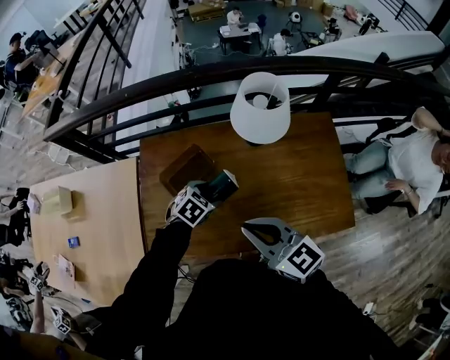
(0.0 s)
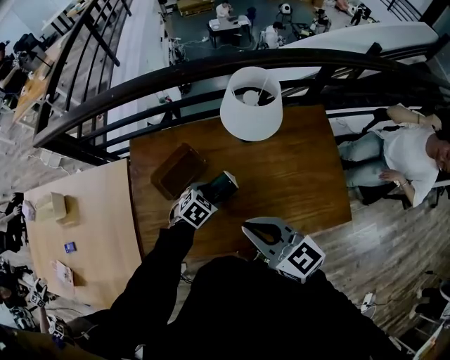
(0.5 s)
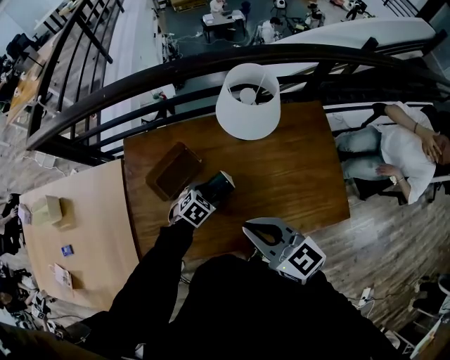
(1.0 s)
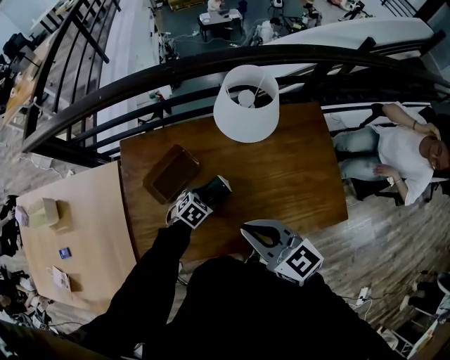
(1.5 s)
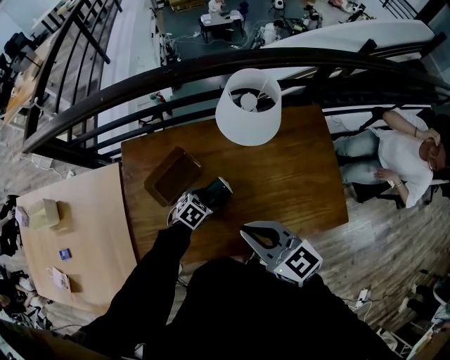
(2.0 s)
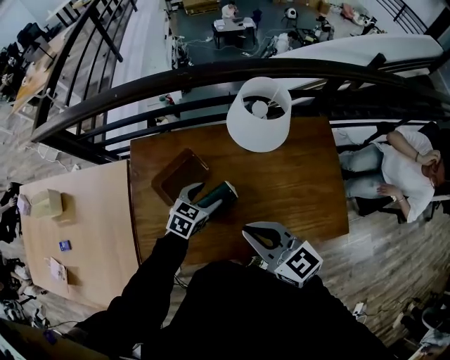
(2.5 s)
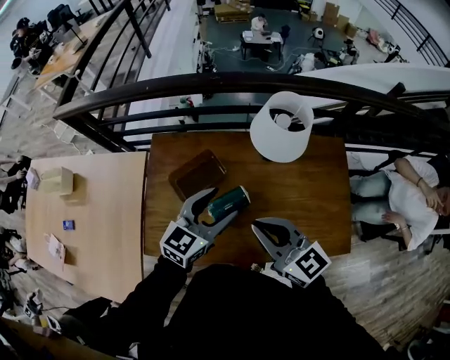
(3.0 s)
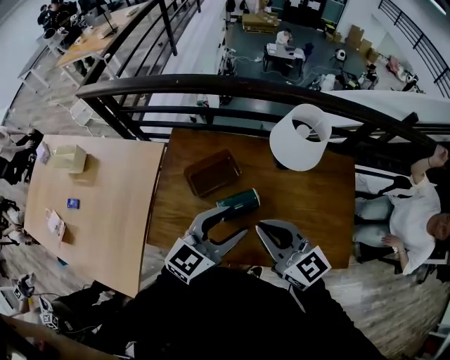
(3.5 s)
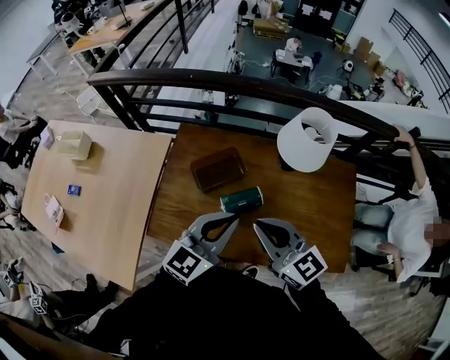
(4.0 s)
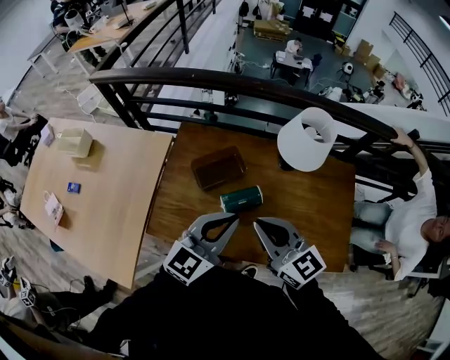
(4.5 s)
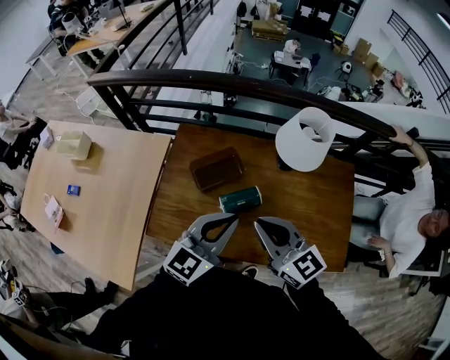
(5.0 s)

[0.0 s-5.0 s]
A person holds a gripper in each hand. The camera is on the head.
0.0 to 2.5 s: The left gripper moves roughly 10 cm downward and comes back, and turns by approximately 20 degrees.
2.5 to 5.0 s: The right gripper moves upward, some 5 cm. Meanwhile the left gripper is displaced upward and backward by about 25 cm, tips its fingers upward by roughly 30 degrees, and closes.

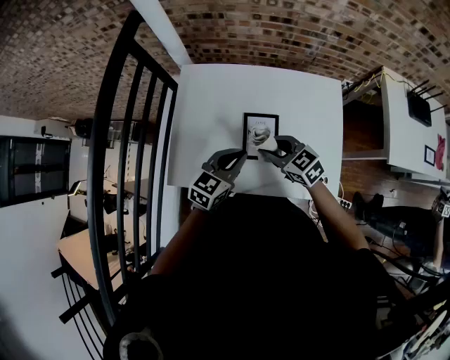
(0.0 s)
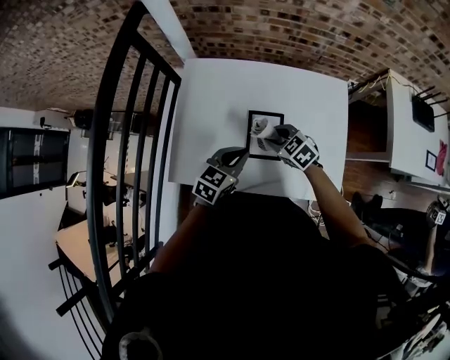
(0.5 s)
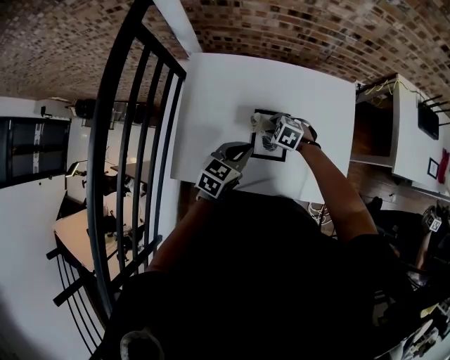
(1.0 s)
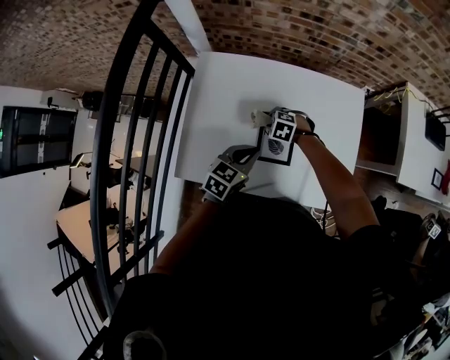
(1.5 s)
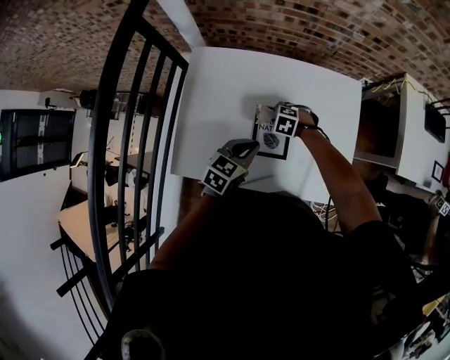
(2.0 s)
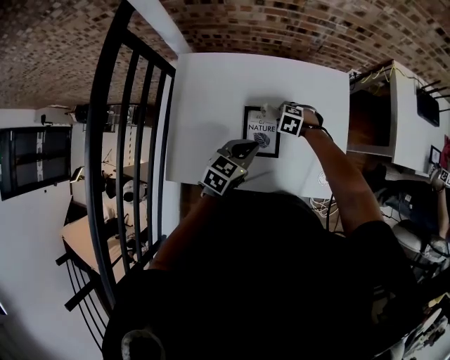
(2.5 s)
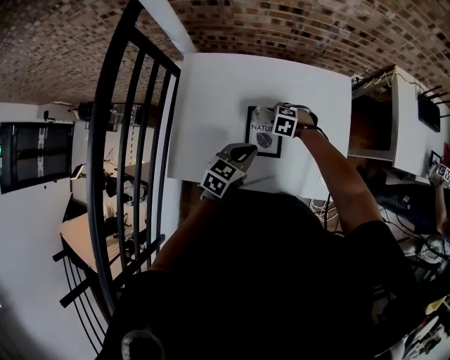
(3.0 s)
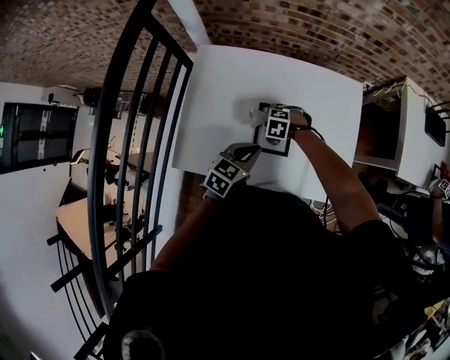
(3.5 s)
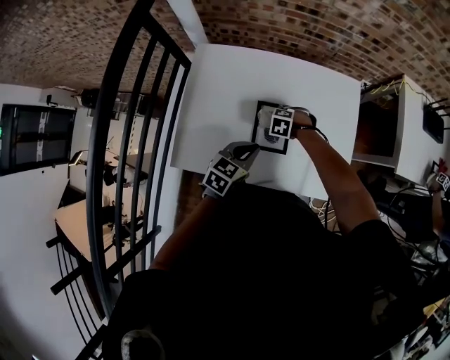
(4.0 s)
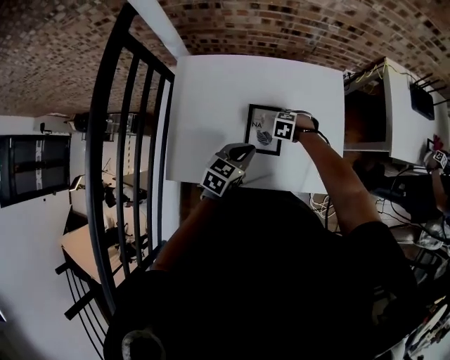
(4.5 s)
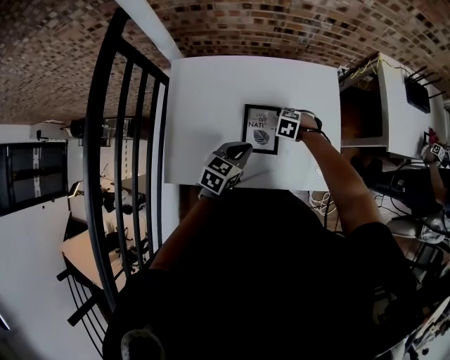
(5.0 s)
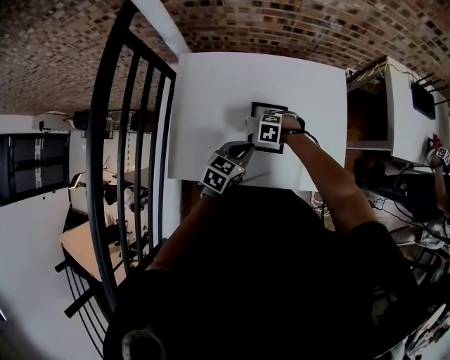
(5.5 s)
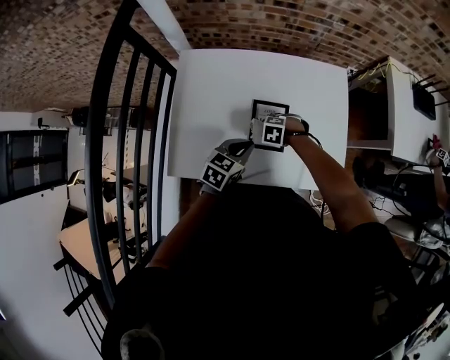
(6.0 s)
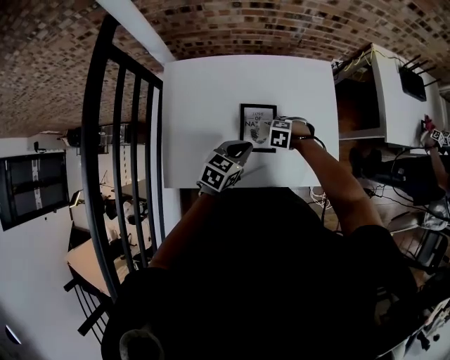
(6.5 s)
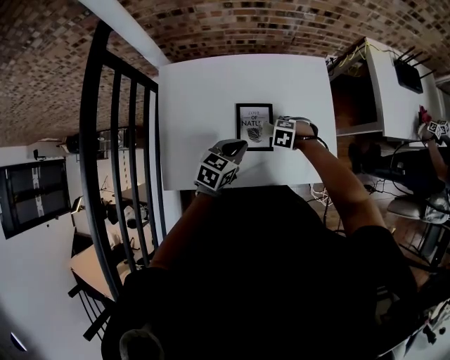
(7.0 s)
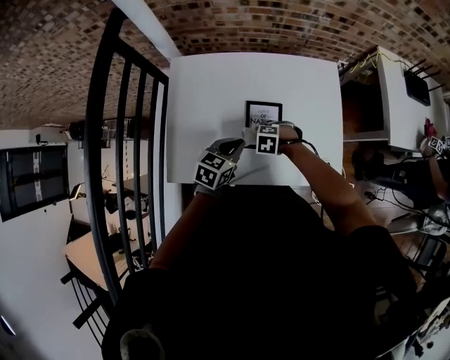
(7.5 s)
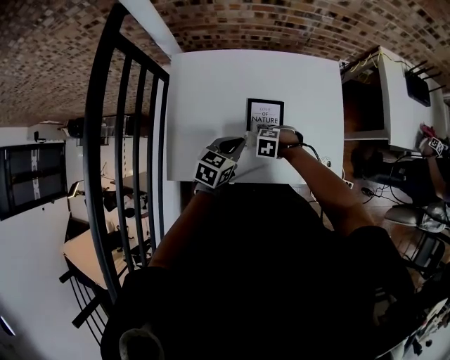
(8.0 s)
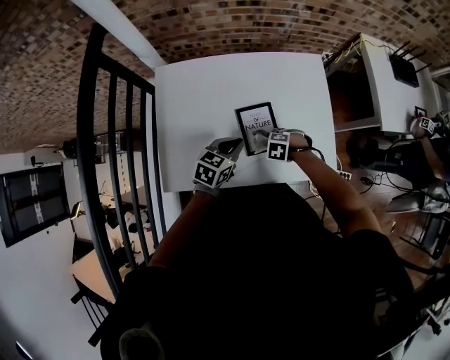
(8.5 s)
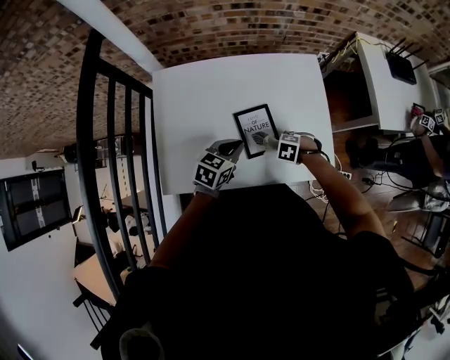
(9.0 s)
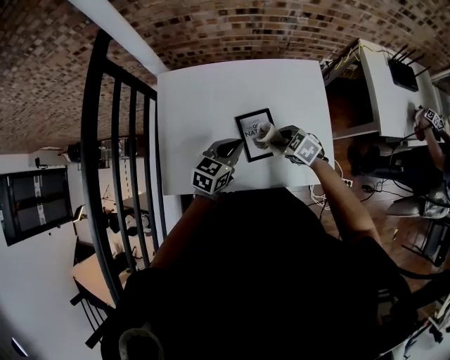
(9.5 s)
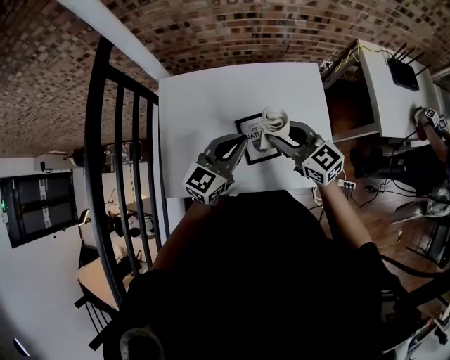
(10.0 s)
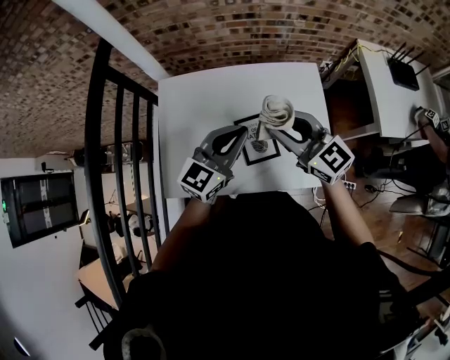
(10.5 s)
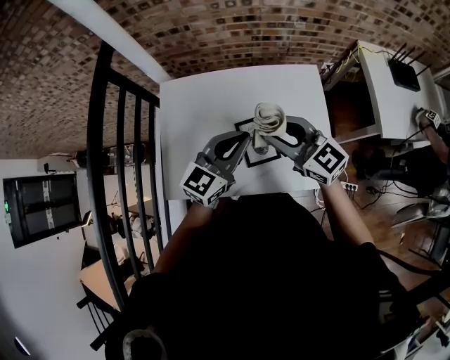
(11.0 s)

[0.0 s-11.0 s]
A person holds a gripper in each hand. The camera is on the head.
0.0 to 2.0 s: The left gripper heads downward, covering about 5 cm. Meanwhile the right gripper shifts roughly 20 cm downward, and tips its fingers downward by about 40 degrees.
7.5 to 9.0 s: The right gripper moves some 15 cm.
9.0 to 11.0 s: The right gripper travels upward by some 35 cm, and tips its fingers upward by about 80 degrees. The left gripper goes roughly 20 cm upward, and points its fingers roughly 30 degrees further upward.

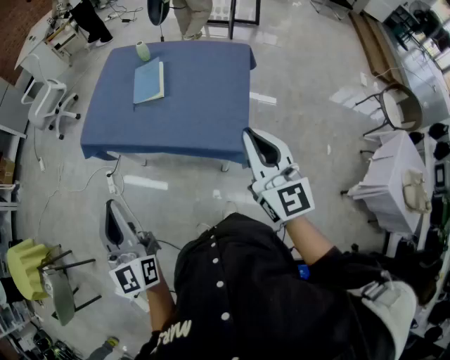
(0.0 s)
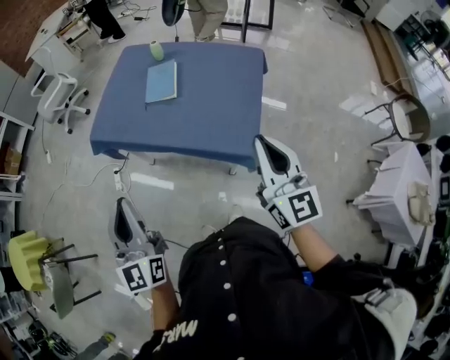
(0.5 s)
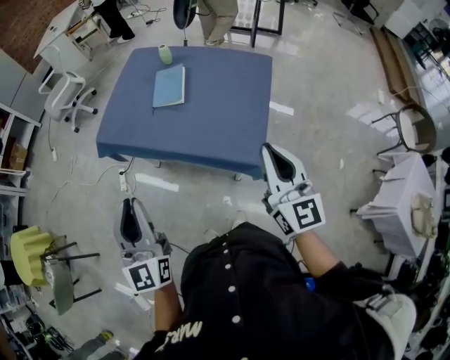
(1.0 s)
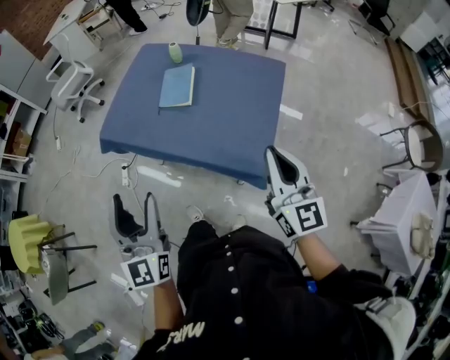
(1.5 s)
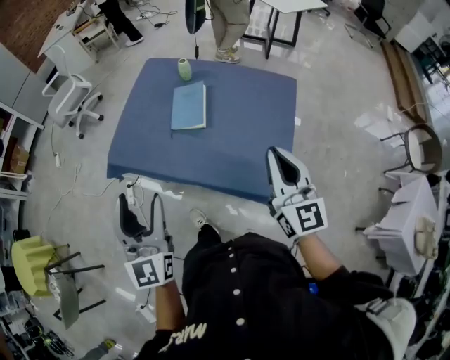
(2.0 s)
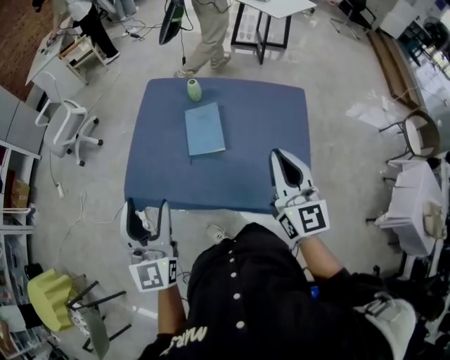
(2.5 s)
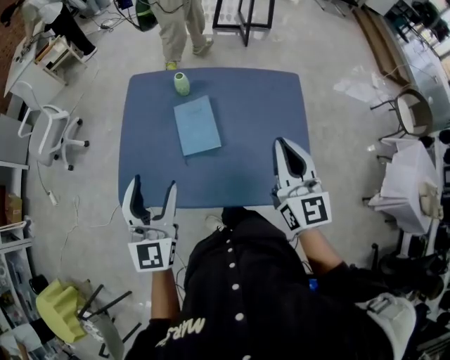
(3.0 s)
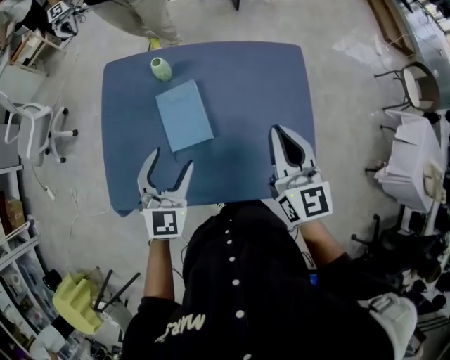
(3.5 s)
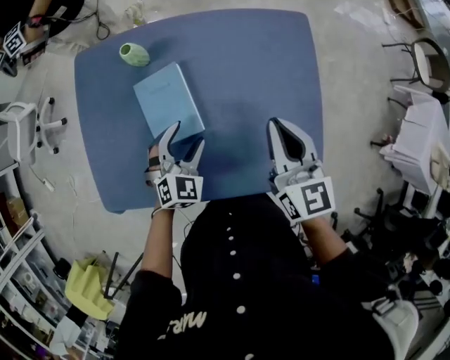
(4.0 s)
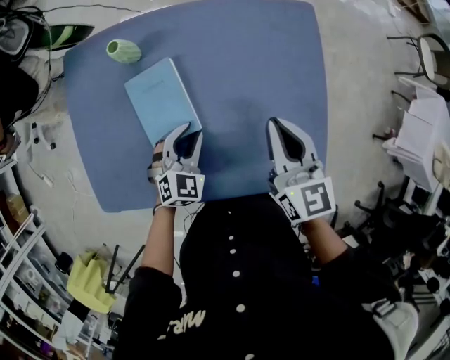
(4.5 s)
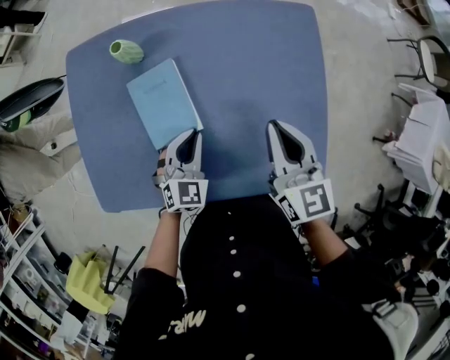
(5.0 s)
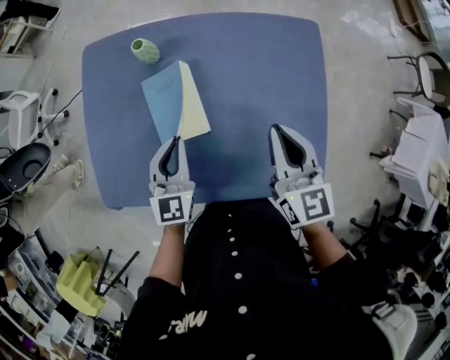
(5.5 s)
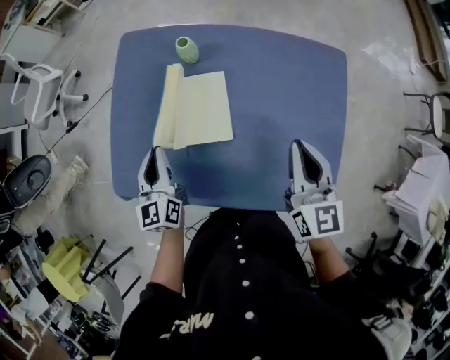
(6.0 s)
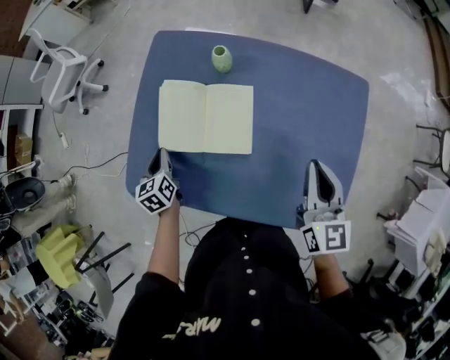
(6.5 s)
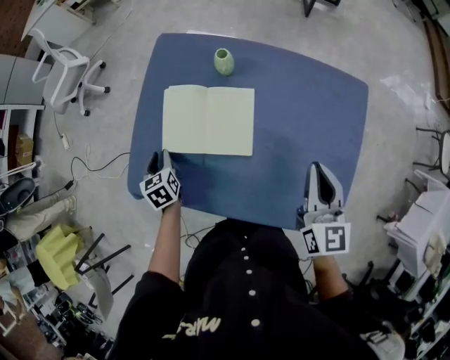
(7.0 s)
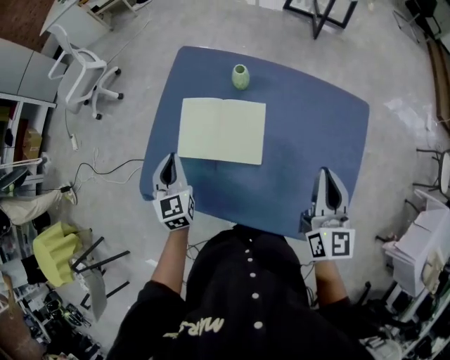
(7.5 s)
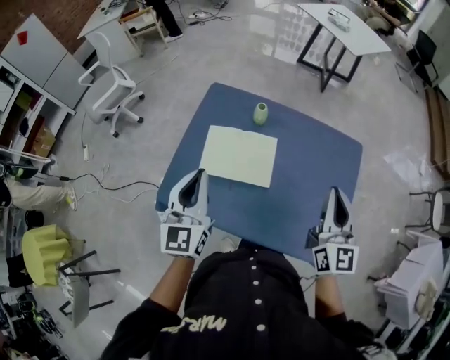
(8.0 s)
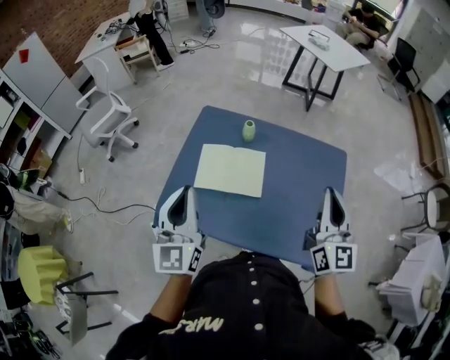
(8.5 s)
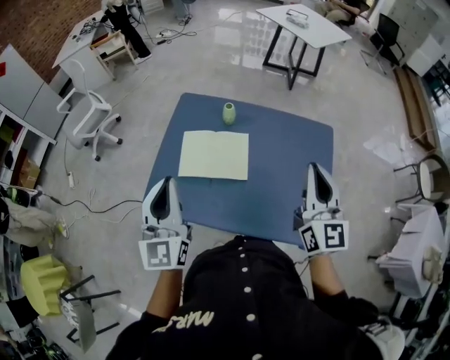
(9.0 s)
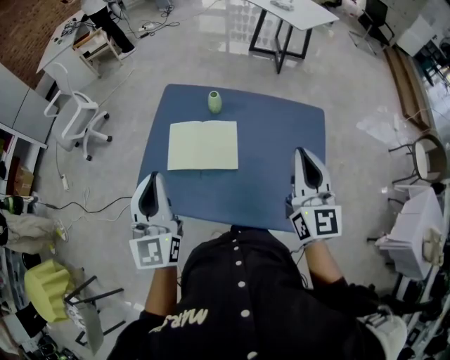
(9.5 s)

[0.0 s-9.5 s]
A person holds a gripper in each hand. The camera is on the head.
0.0 to 2.0 s: Both grippers travel together forward, approximately 20 cm. The left gripper opens.
2.0 to 4.0 s: The left gripper changes place by roughly 50 cm, and tips its fingers downward by about 40 degrees. The right gripper shifts by some 35 cm, and swivels some 30 degrees.
4.0 to 5.5 s: The left gripper moves to the left and upward, some 10 cm, rotates about 40 degrees, and closes its fingers.
5.5 to 7.5 s: The right gripper moves upward, roughly 5 cm. Meanwhile the left gripper goes about 20 cm to the left, and changes its angle by roughly 30 degrees.
7.5 to 9.5 s: The right gripper goes approximately 20 cm upward and backward; the left gripper shifts approximately 30 cm upward and backward, and changes its angle by some 30 degrees.

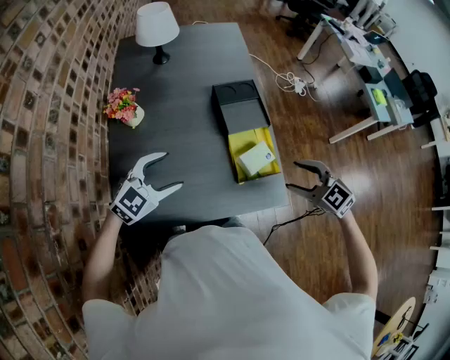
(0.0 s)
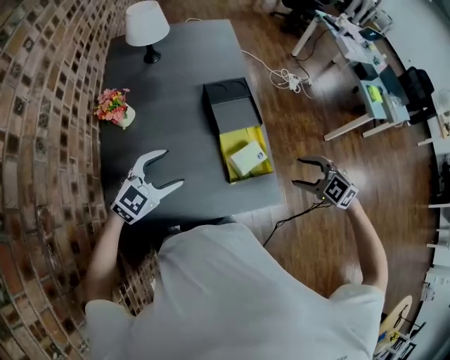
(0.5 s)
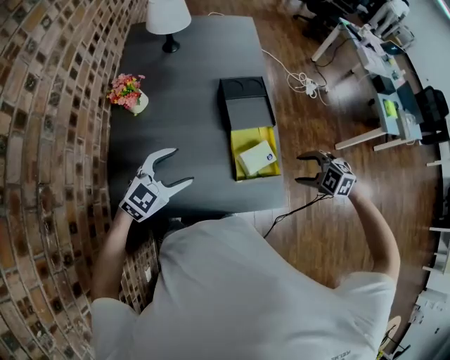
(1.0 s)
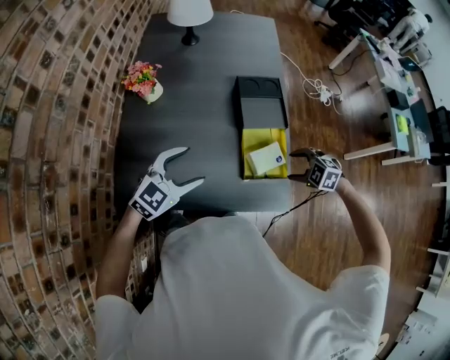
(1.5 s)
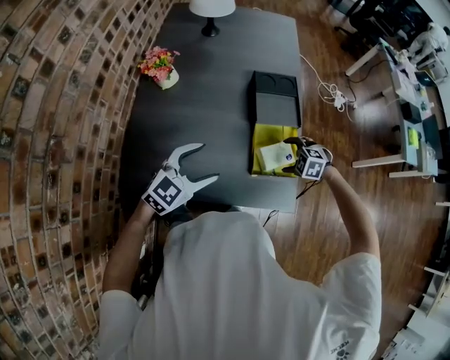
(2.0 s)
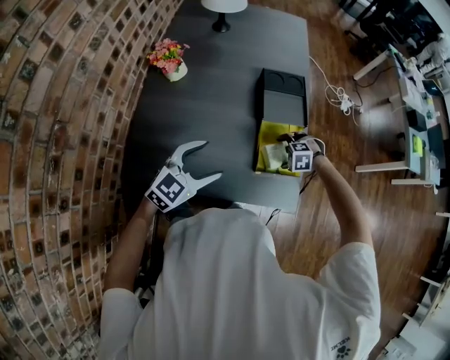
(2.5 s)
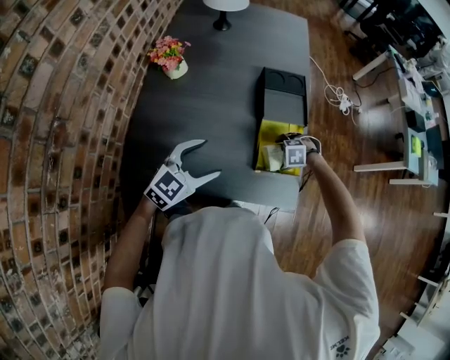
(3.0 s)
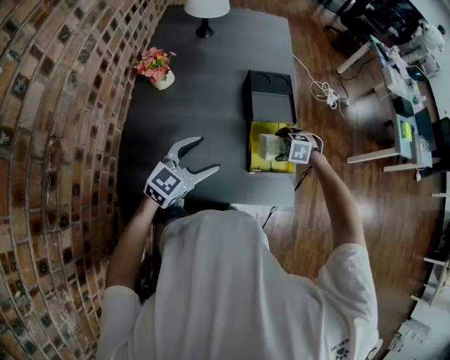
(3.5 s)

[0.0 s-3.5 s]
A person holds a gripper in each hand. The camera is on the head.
0.0 to 2.0 s: The right gripper moves downward and forward, approximately 25 cm, and points its fingers approximately 40 degrees further downward; the left gripper goes approximately 5 cm to the right.
